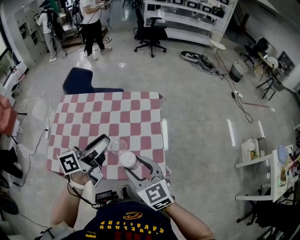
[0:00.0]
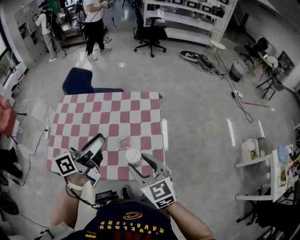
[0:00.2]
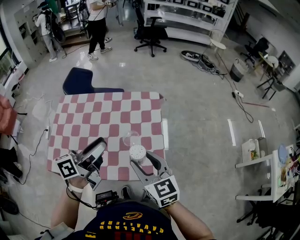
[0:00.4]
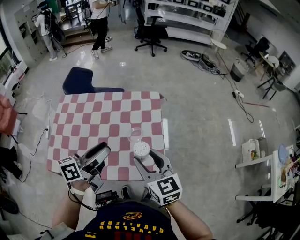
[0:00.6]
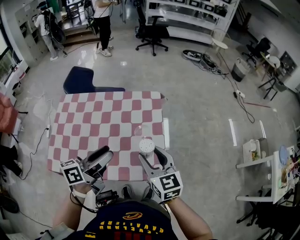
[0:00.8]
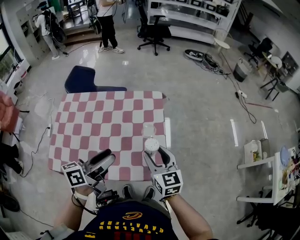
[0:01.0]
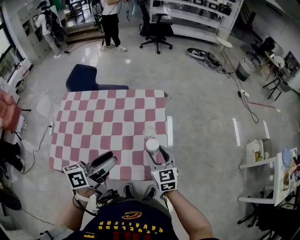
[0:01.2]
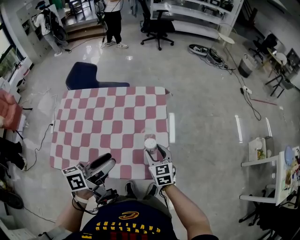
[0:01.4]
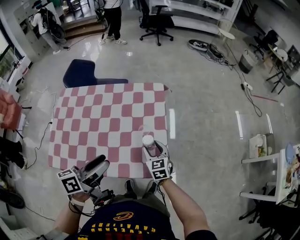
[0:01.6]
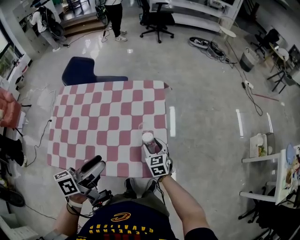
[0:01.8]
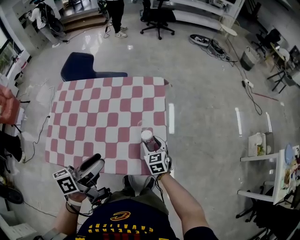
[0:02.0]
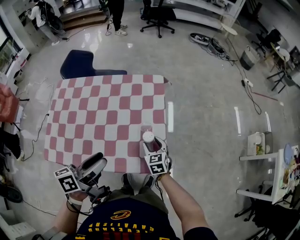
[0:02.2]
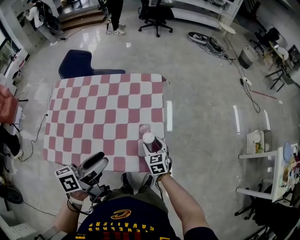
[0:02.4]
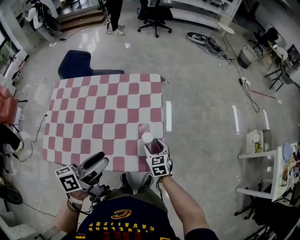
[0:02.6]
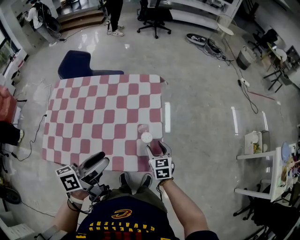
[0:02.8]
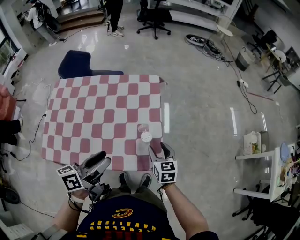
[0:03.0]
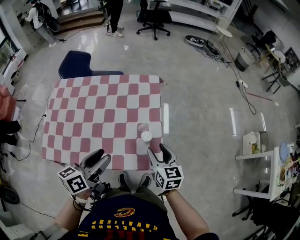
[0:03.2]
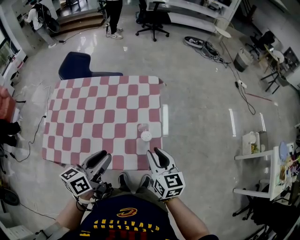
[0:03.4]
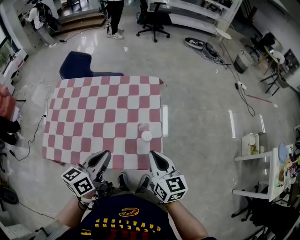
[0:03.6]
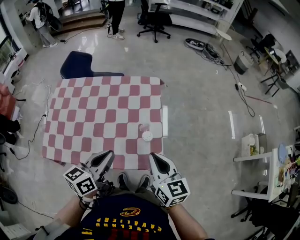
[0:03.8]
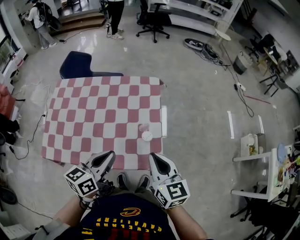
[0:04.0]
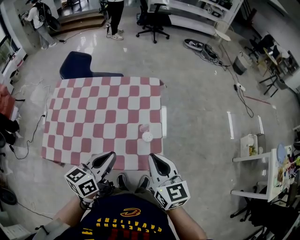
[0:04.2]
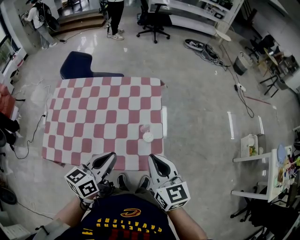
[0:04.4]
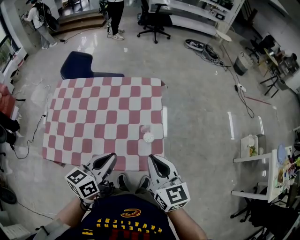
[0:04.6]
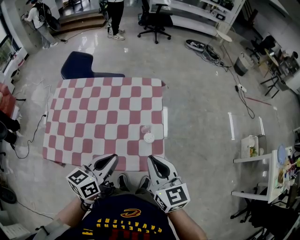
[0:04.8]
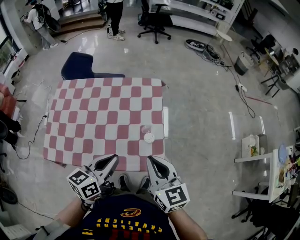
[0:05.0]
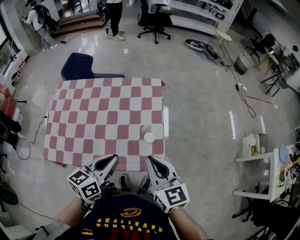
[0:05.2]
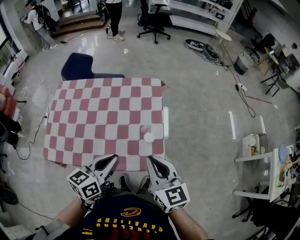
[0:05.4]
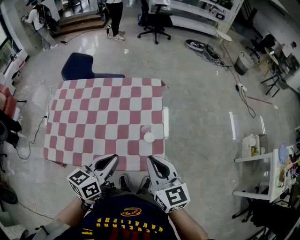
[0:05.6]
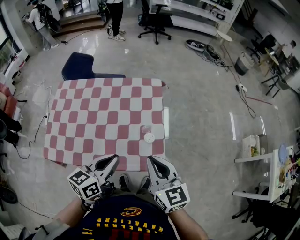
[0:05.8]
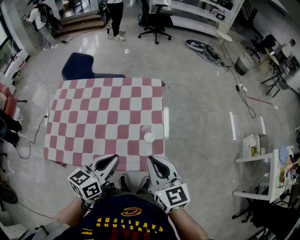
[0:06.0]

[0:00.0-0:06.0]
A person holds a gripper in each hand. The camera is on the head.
0:00.0 to 0:01.6: The right gripper goes roughly 25 cm downward and forward, and swivels roughly 20 degrees, while the left gripper travels downward and backward by approximately 10 cm.
0:01.6 to 0:03.0: The right gripper shifts approximately 5 cm to the right.
0:03.0 to 0:04.4: The left gripper swivels approximately 20 degrees, and closes up, while the right gripper is displaced upward by some 20 cm, and closes its fingers.
0:04.4 to 0:06.0: The grippers stay close to where they were, moving slightly.

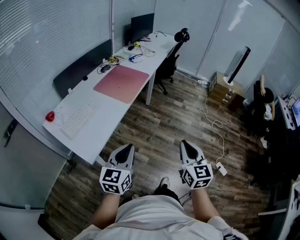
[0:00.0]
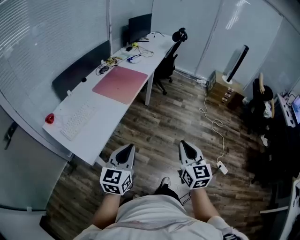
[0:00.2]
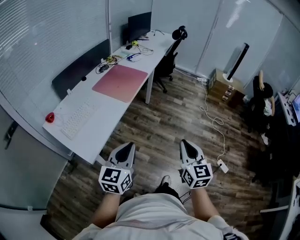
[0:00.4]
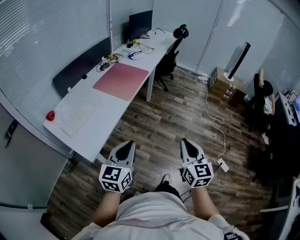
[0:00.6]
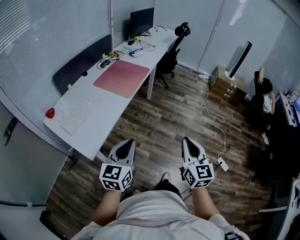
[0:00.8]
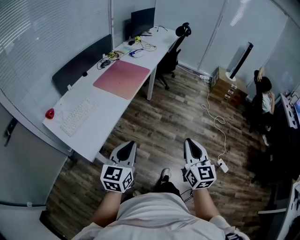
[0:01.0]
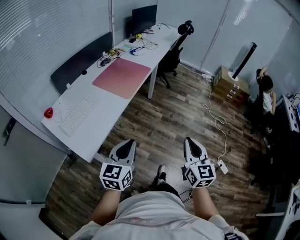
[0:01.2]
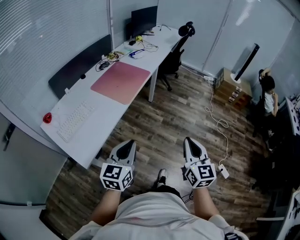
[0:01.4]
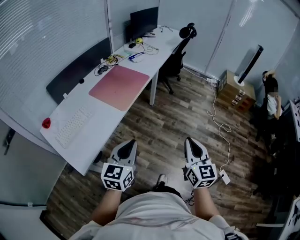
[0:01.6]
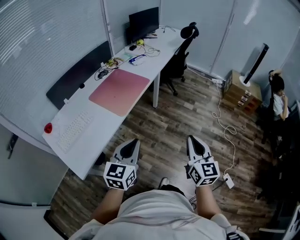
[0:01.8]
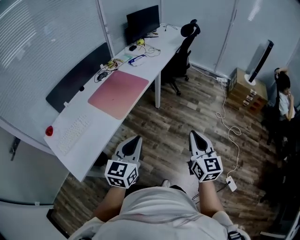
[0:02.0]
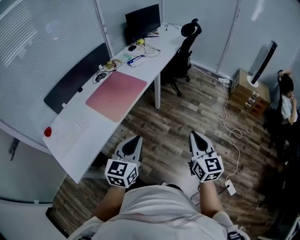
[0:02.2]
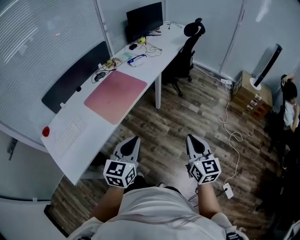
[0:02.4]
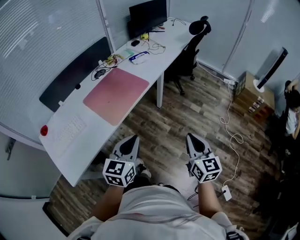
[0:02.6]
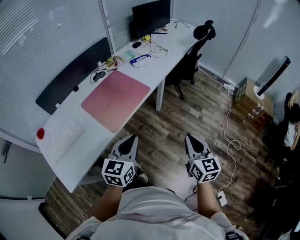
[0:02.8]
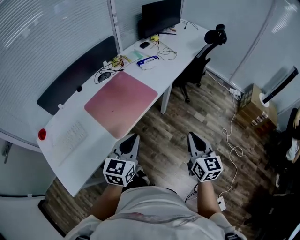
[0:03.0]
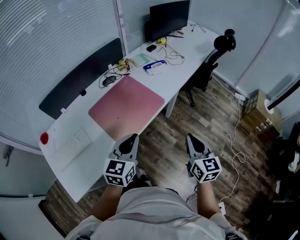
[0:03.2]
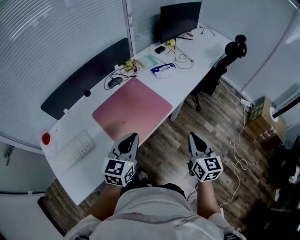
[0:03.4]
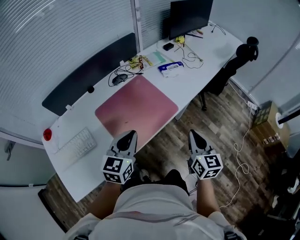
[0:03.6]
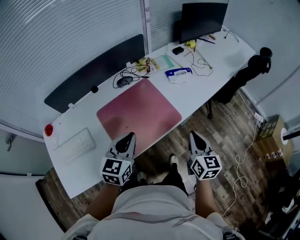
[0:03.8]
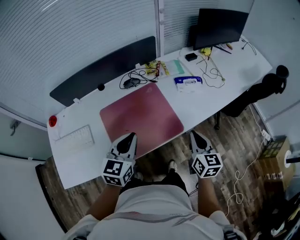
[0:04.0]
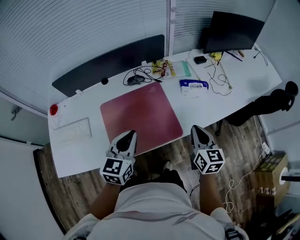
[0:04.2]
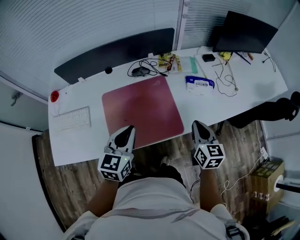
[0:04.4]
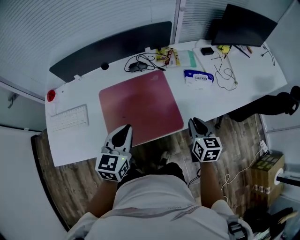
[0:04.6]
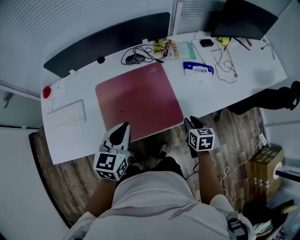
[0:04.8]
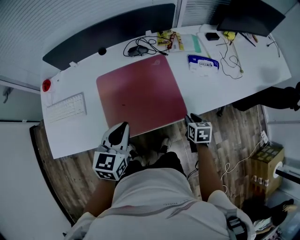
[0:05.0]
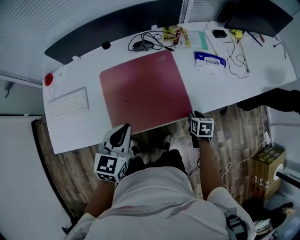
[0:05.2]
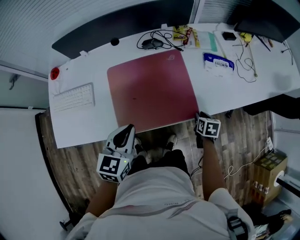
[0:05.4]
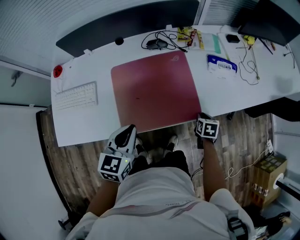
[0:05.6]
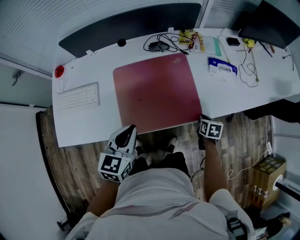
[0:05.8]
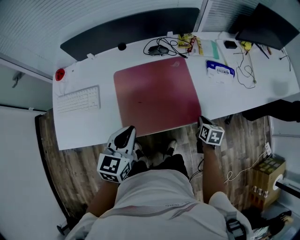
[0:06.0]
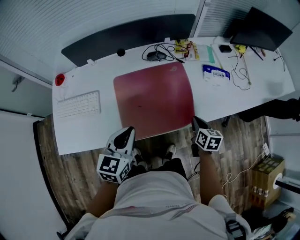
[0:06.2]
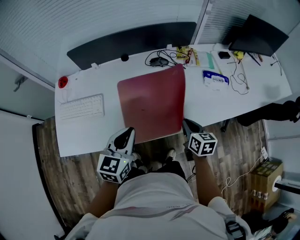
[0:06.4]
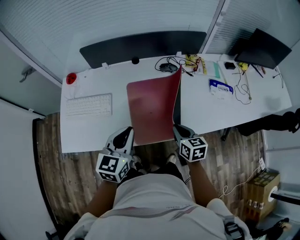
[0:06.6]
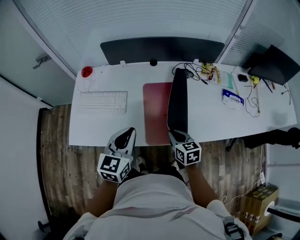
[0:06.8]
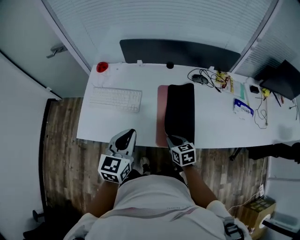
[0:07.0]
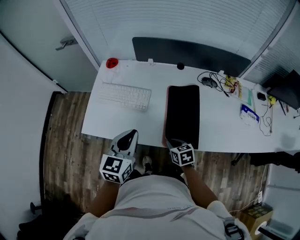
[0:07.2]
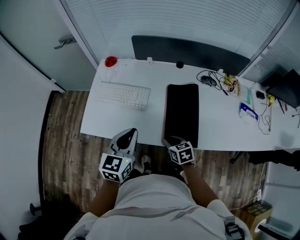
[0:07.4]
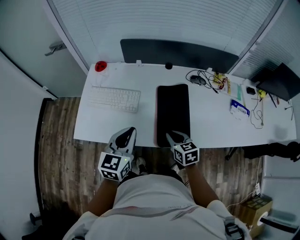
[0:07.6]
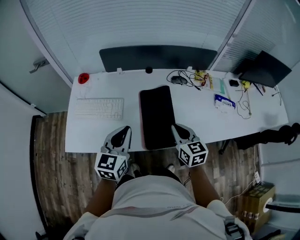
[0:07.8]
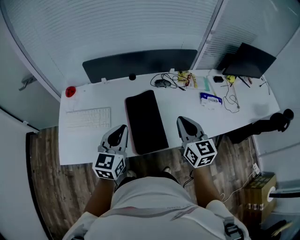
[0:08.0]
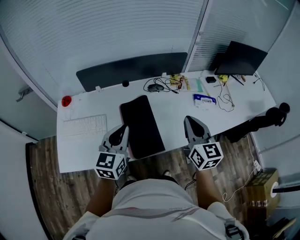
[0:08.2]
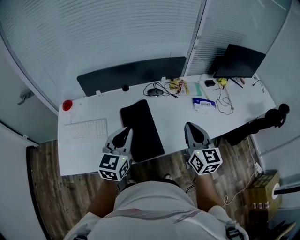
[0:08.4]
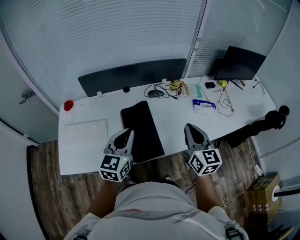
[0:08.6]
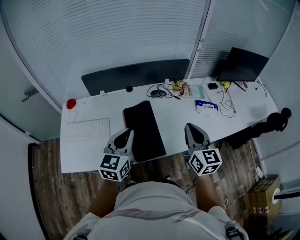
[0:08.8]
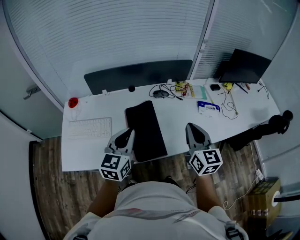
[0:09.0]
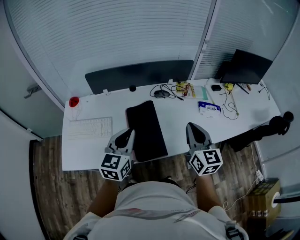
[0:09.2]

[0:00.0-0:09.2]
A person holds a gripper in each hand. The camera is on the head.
0:00.0 to 0:01.6: Both grippers travel together forward and to the right, roughly 15 cm.
0:01.6 to 0:03.0: The two grippers go about 35 cm forward.
0:03.0 to 0:04.6: The left gripper moves about 25 cm, and turns by some 40 degrees; the right gripper moves about 40 cm, and rotates some 40 degrees.
0:04.6 to 0:06.2: The right gripper heads downward and to the left, covering some 10 cm. Meanwhile the left gripper is displaced to the left and backward by roughly 10 cm.
0:06.2 to 0:07.6: The right gripper moves up and down over about 10 cm, changing direction 2 times, and turns by some 40 degrees, while the left gripper moves roughly 20 cm.
0:07.6 to 0:09.2: The right gripper is displaced upward and to the right by roughly 30 cm, and tilts its fingers roughly 30 degrees upward, while the left gripper travels to the right, upward and forward by about 15 cm.

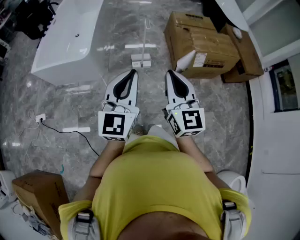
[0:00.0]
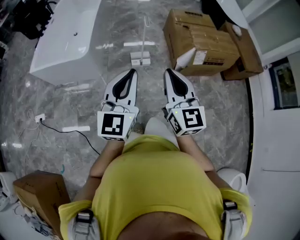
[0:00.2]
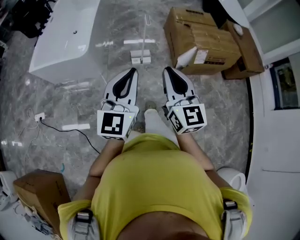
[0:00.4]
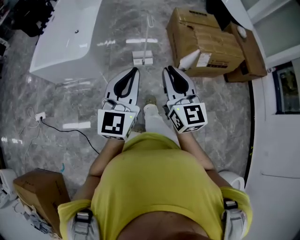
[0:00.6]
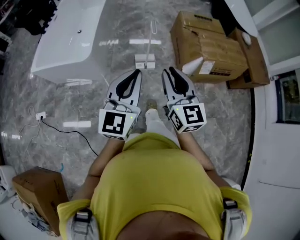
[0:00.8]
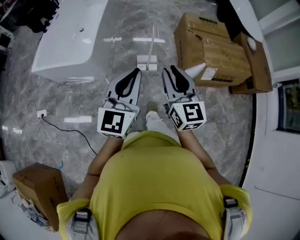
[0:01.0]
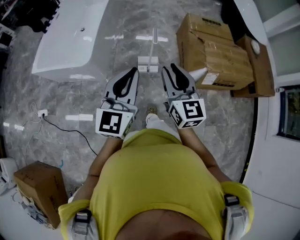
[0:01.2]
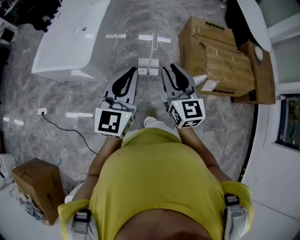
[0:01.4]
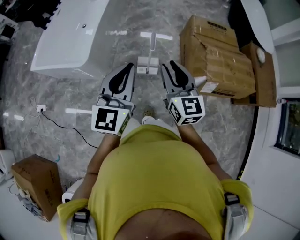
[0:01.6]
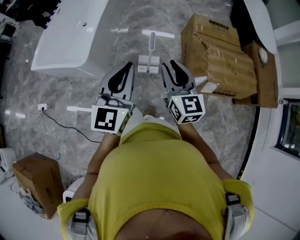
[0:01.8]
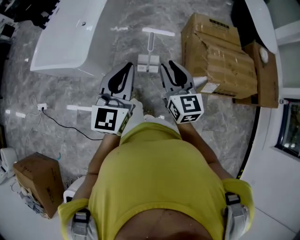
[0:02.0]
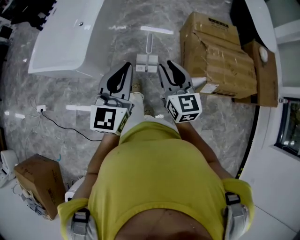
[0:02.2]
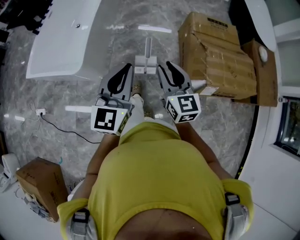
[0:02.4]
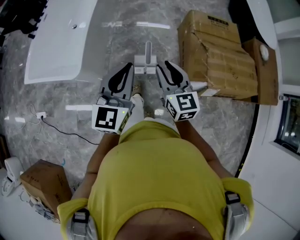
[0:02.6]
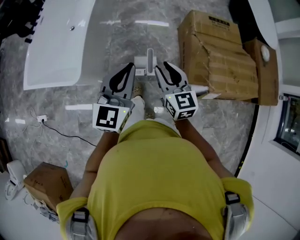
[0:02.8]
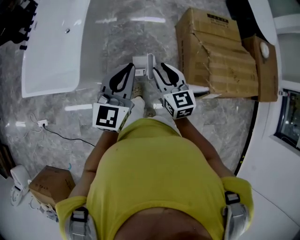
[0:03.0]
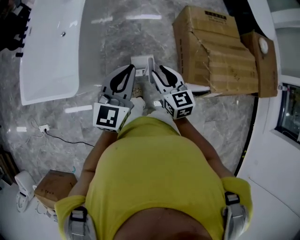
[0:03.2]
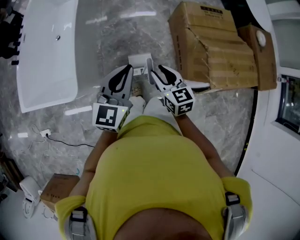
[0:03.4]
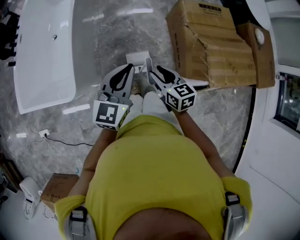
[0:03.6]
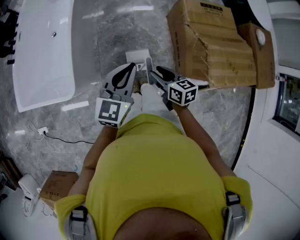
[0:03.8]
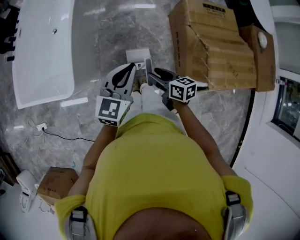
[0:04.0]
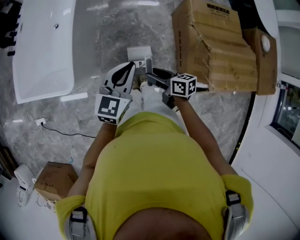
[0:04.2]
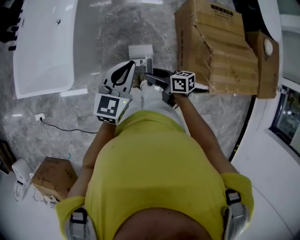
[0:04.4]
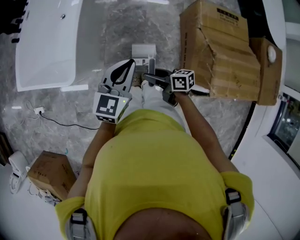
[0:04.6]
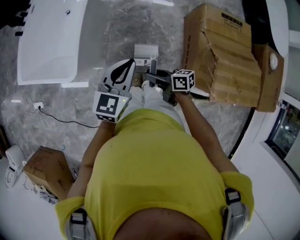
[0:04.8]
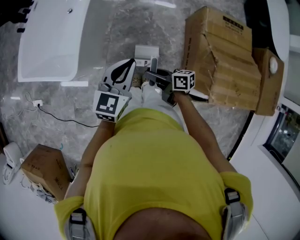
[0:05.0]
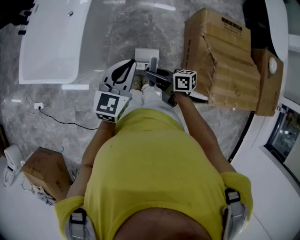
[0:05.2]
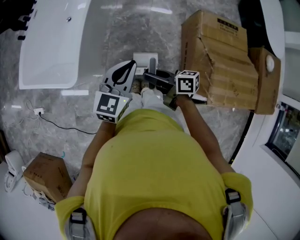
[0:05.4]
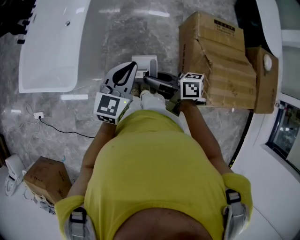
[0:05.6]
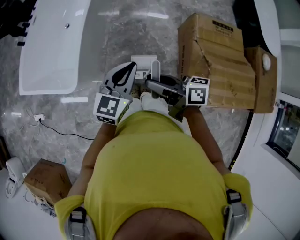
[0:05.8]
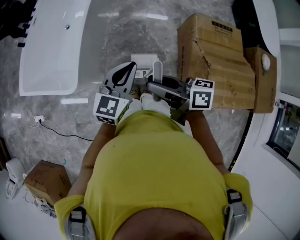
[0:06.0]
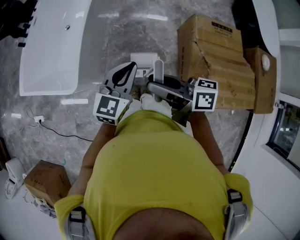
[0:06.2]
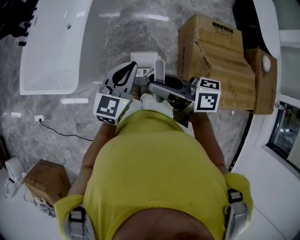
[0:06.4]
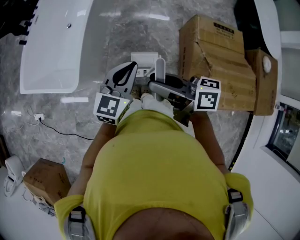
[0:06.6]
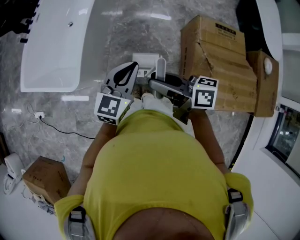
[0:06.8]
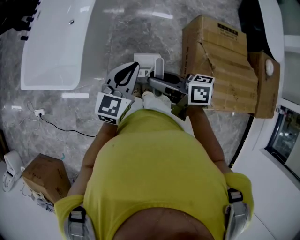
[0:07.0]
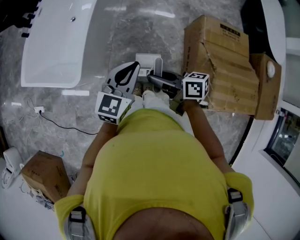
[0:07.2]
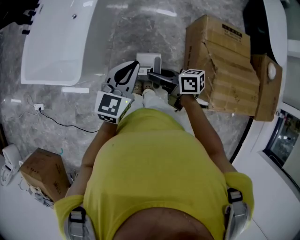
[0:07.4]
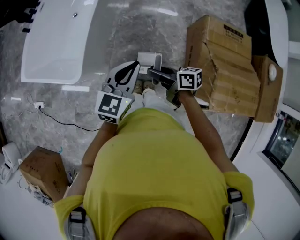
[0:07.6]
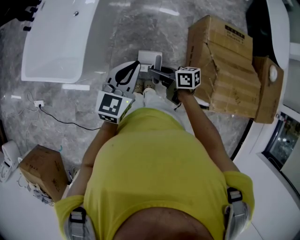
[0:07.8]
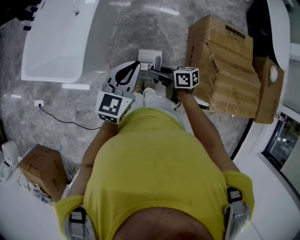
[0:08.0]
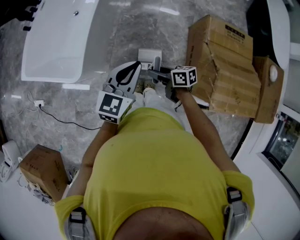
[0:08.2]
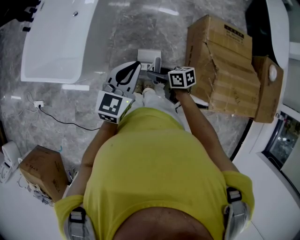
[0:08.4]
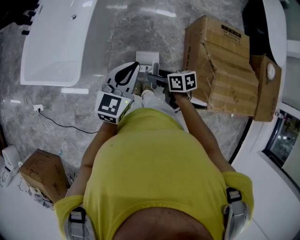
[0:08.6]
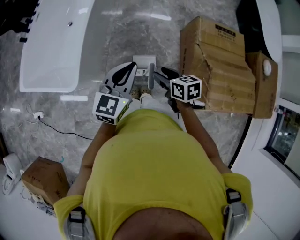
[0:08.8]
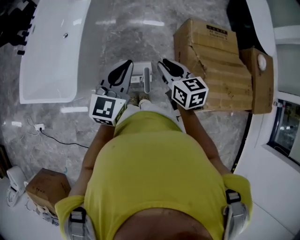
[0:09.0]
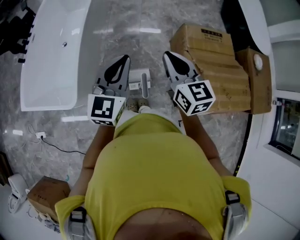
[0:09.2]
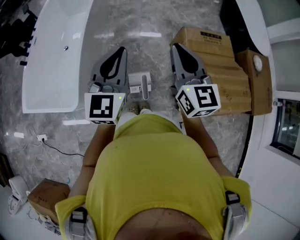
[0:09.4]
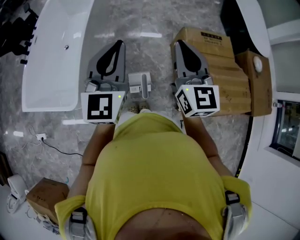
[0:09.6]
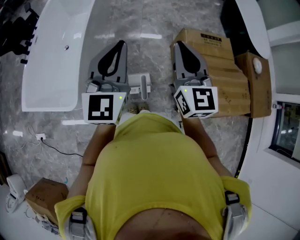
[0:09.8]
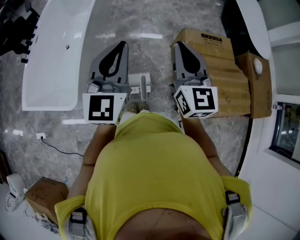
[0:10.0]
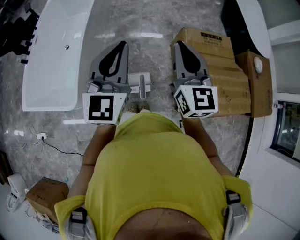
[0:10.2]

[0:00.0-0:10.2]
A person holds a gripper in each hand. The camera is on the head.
0:00.0 to 0:01.4: Both grippers travel together forward, approximately 25 cm. The right gripper opens.
0:01.4 to 0:03.0: The right gripper goes about 25 cm forward and downward. The left gripper is displaced forward by approximately 25 cm.
0:03.0 to 0:04.4: The right gripper is displaced downward by some 15 cm, and changes its angle by roughly 60 degrees; the left gripper goes roughly 10 cm downward and forward.
0:04.4 to 0:05.8: The right gripper shifts about 20 cm upward.
0:05.8 to 0:07.2: The right gripper moves roughly 5 cm.
0:07.2 to 0:08.8: The right gripper goes roughly 10 cm downward and to the right, and swivels roughly 40 degrees.
0:08.8 to 0:10.2: The right gripper moves upward, some 30 cm, angles its fingers upward, by about 40 degrees, and closes; the left gripper moves upward, roughly 15 cm, and changes its angle by some 20 degrees.
